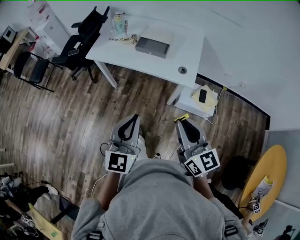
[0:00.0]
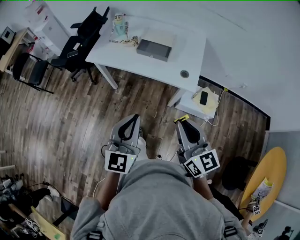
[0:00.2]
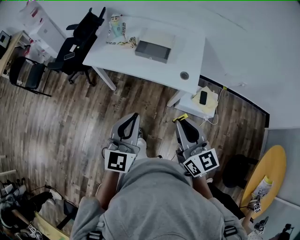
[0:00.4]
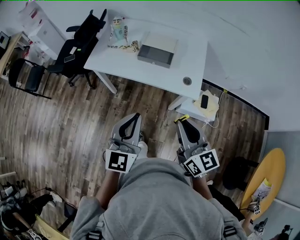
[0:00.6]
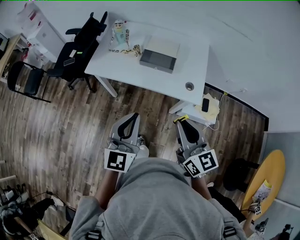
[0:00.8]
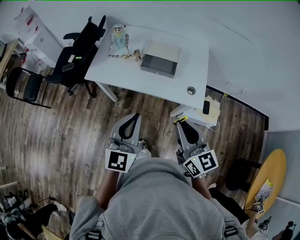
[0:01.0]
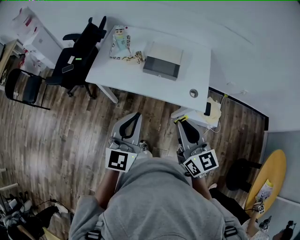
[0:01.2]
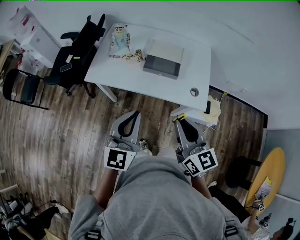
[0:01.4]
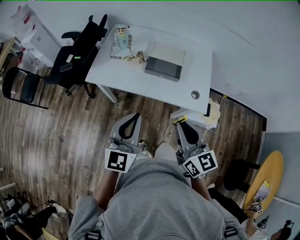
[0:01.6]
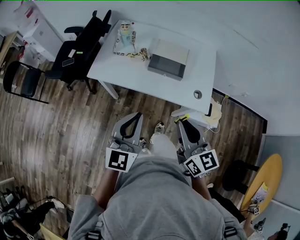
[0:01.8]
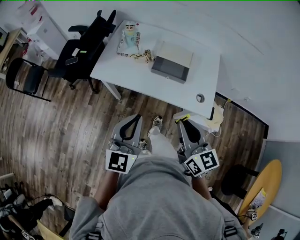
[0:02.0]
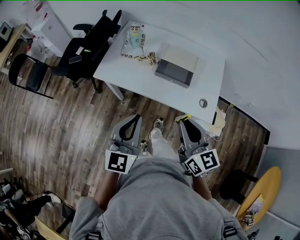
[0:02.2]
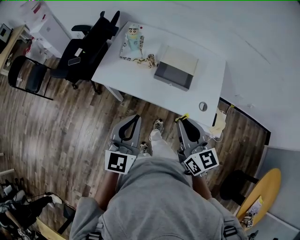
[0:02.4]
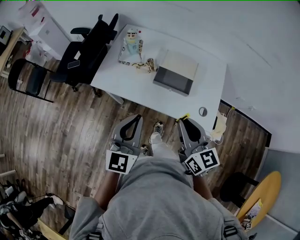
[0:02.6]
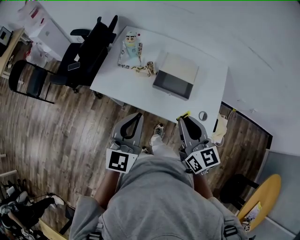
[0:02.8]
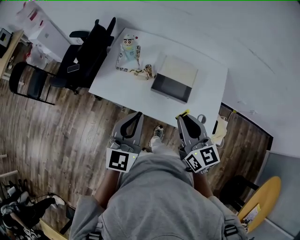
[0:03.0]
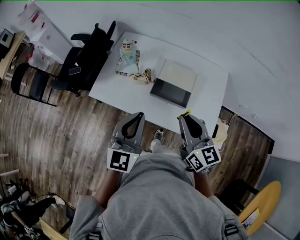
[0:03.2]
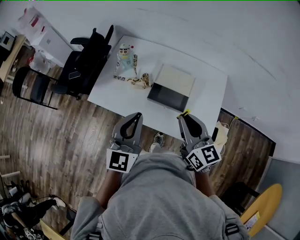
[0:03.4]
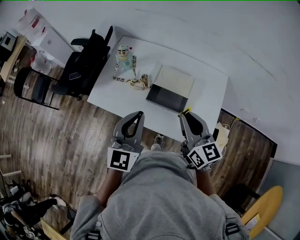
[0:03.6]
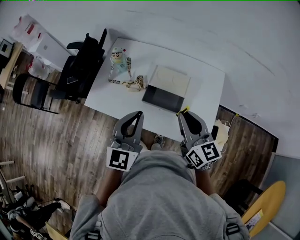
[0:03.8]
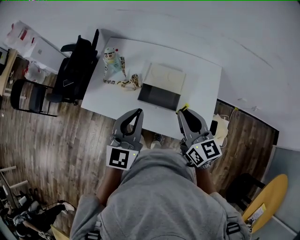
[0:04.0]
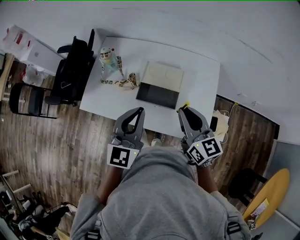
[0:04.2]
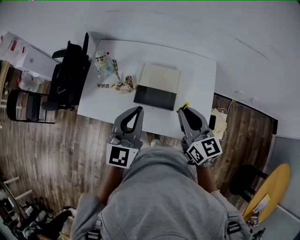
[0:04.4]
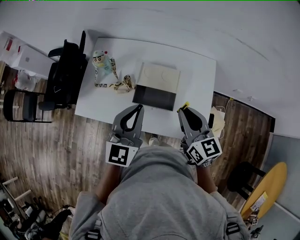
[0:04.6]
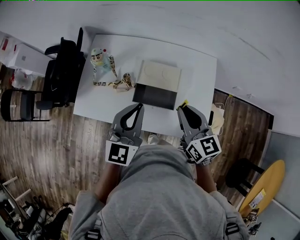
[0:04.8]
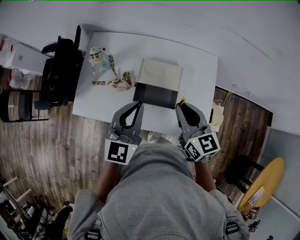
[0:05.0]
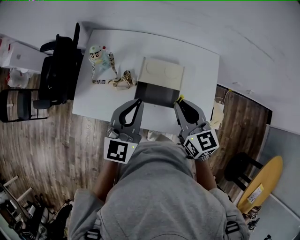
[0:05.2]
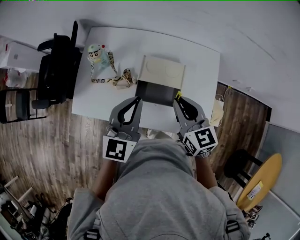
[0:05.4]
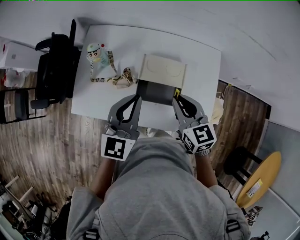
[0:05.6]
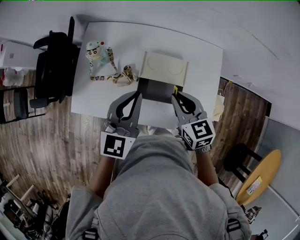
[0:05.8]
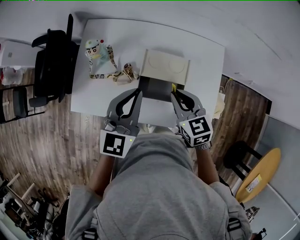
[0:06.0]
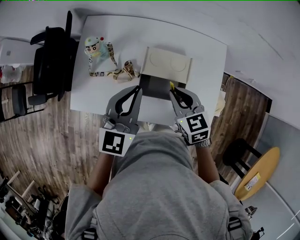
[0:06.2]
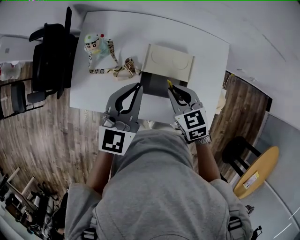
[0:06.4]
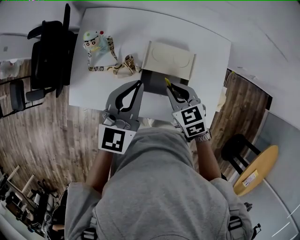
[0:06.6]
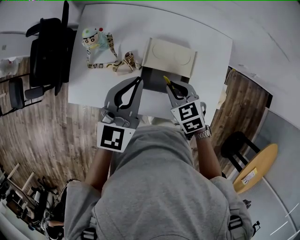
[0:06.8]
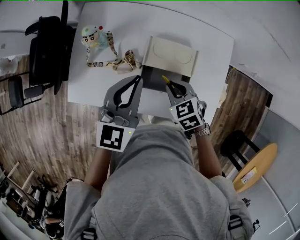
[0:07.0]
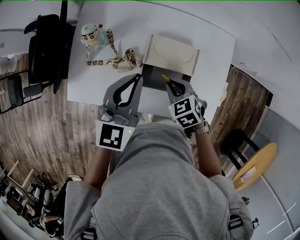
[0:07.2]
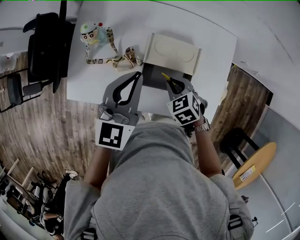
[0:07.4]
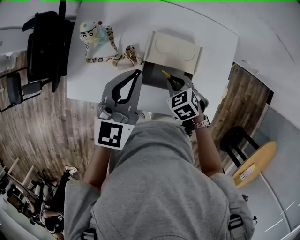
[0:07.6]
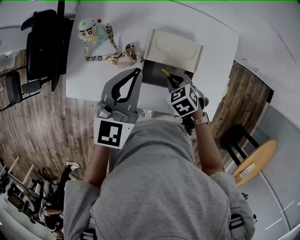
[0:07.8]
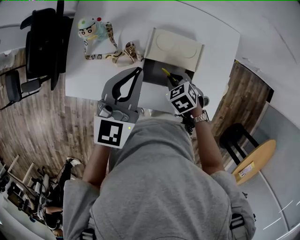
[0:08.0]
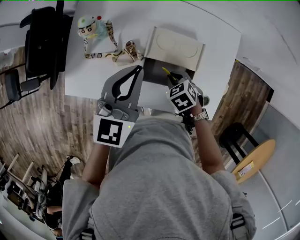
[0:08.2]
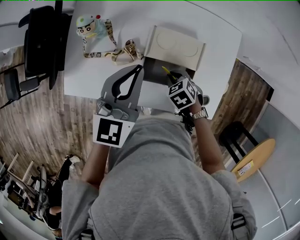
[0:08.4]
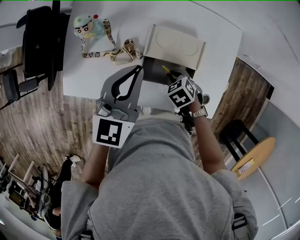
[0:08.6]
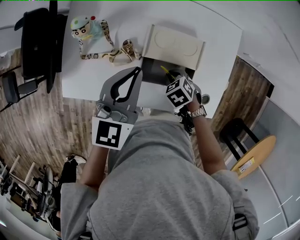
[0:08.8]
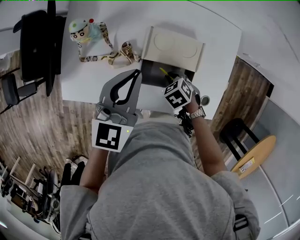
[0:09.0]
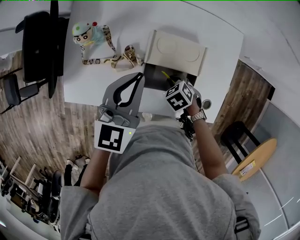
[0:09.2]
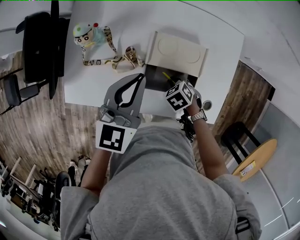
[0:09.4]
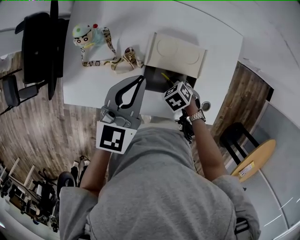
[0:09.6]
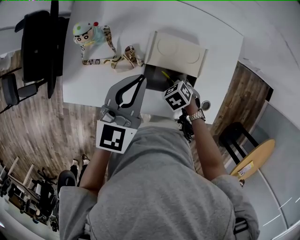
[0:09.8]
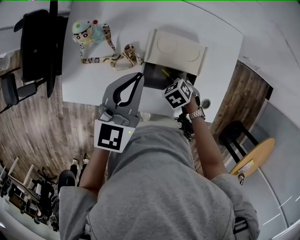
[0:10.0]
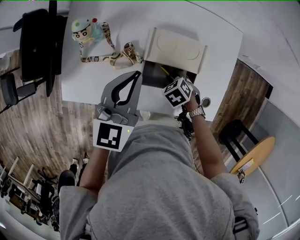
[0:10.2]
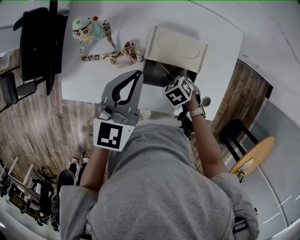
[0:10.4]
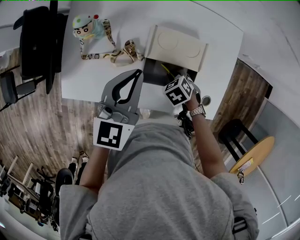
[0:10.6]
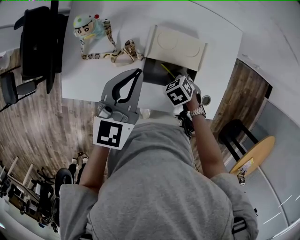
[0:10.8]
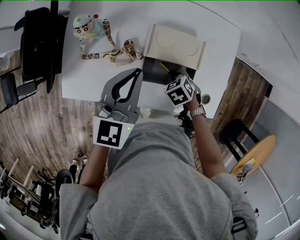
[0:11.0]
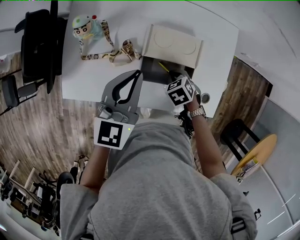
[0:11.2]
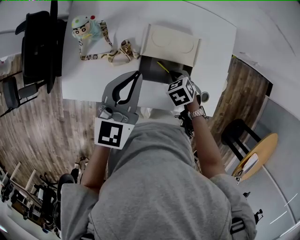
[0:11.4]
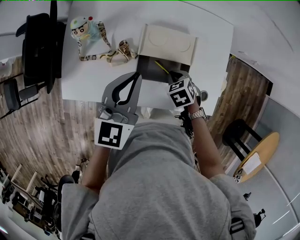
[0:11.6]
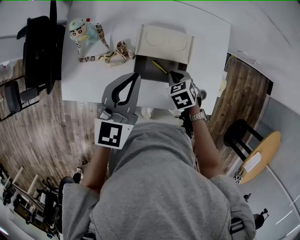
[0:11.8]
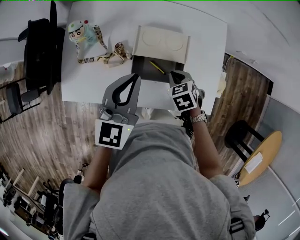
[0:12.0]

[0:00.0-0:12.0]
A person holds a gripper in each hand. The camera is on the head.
0:00.0 to 0:01.6: Both grippers move forward and to the left, approximately 25 cm.
0:01.6 to 0:03.0: The two grippers go some 15 cm forward.
0:03.0 to 0:04.4: The left gripper shifts approximately 15 cm forward and to the right, while the right gripper heads to the right and forward, covering some 15 cm.
0:04.4 to 0:06.0: The left gripper is displaced forward and to the left by approximately 10 cm. The right gripper heads downward, forward and to the left, covering some 15 cm, and swivels about 30 degrees.
0:06.0 to 0:07.6: The left gripper ends up roughly 5 cm from where it was, while the right gripper heads downward, covering some 15 cm, and rotates about 30 degrees.
0:07.6 to 0:09.0: The right gripper moves downward, roughly 10 cm.
0:09.0 to 0:10.4: There are only small adjustments of the grippers.
0:10.4 to 0:12.0: The left gripper ends up some 10 cm from where it was, while the right gripper heads upward, covering approximately 10 cm, and turns by some 20 degrees.

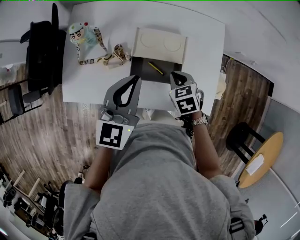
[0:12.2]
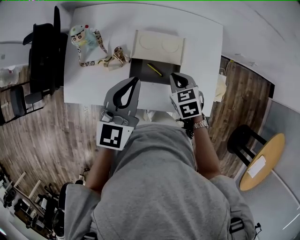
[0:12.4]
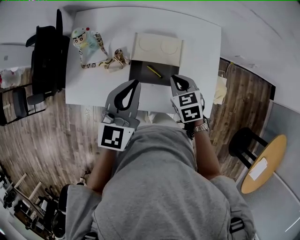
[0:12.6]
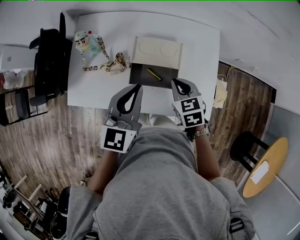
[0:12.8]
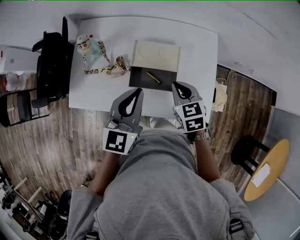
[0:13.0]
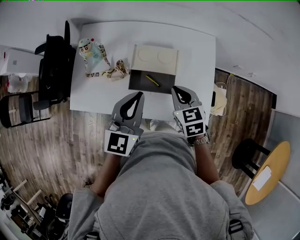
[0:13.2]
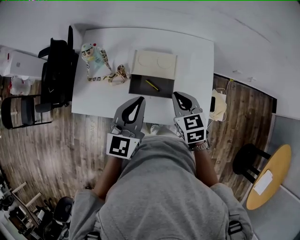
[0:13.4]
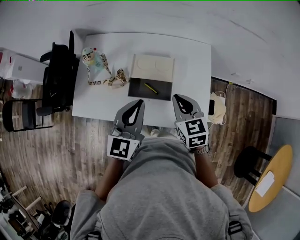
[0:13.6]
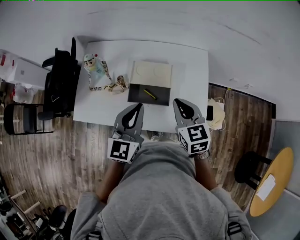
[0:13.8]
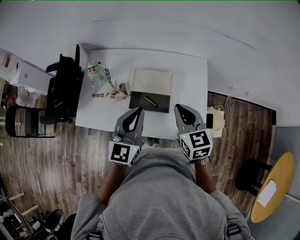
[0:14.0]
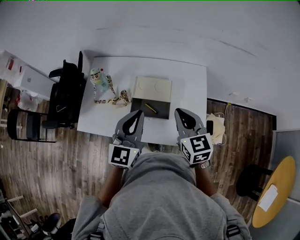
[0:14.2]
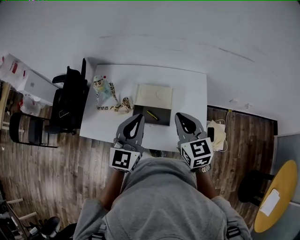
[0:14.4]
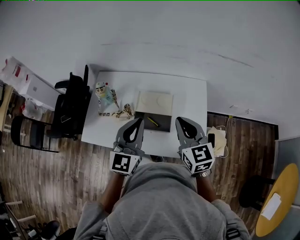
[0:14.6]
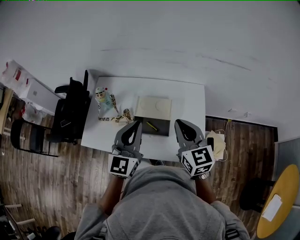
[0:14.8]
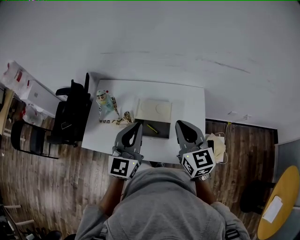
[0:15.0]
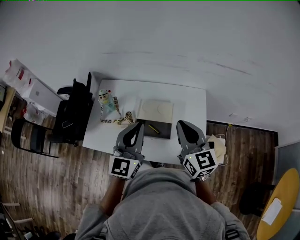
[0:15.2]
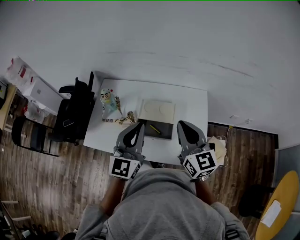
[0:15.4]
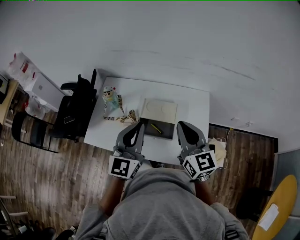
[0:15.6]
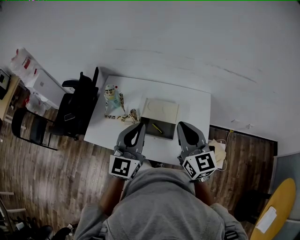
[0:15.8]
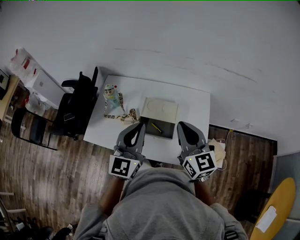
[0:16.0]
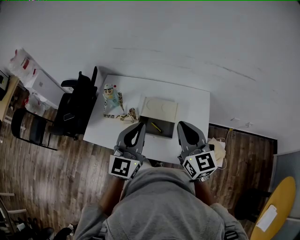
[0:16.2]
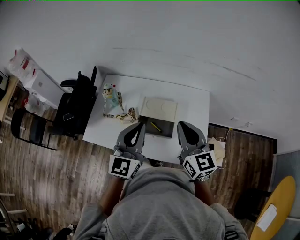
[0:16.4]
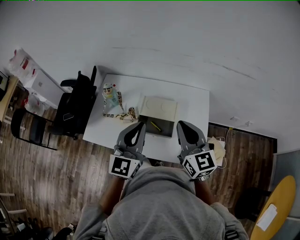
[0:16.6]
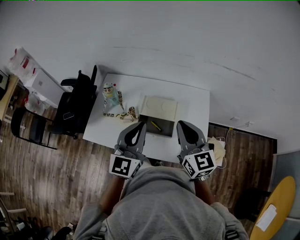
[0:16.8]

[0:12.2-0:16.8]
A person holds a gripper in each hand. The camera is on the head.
0:12.2 to 0:13.8: The left gripper moves backward and to the right, roughly 10 cm. The right gripper shifts roughly 15 cm upward, and angles its fingers upward, by roughly 30 degrees.
0:13.8 to 0:15.2: Both grippers move upward, approximately 10 cm. The right gripper changes its angle by some 20 degrees.
0:15.2 to 0:16.8: The grippers move only a little.

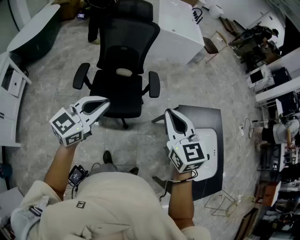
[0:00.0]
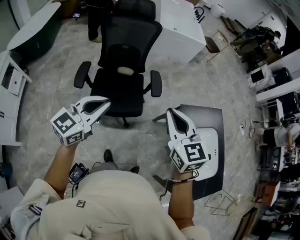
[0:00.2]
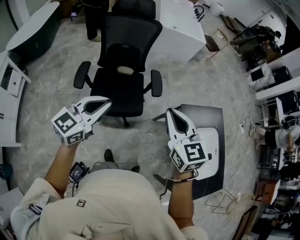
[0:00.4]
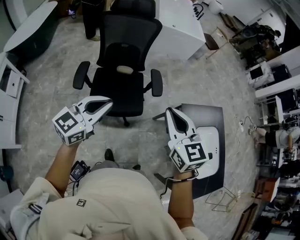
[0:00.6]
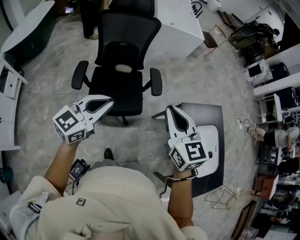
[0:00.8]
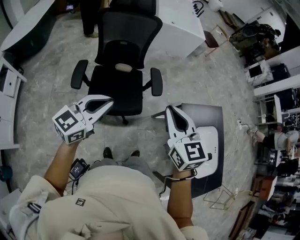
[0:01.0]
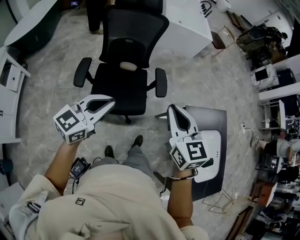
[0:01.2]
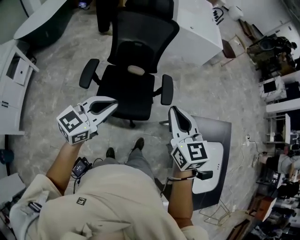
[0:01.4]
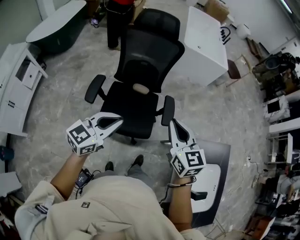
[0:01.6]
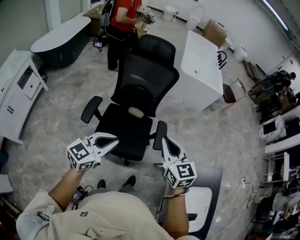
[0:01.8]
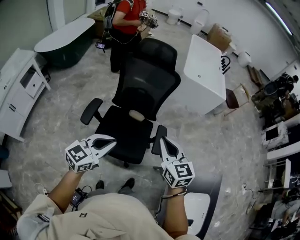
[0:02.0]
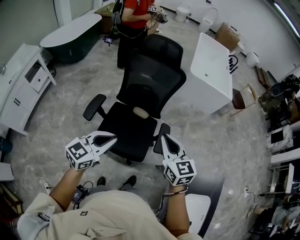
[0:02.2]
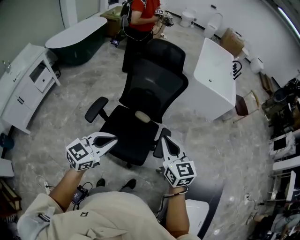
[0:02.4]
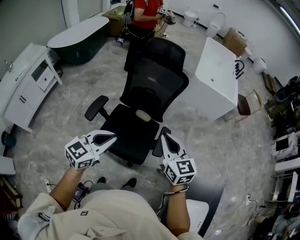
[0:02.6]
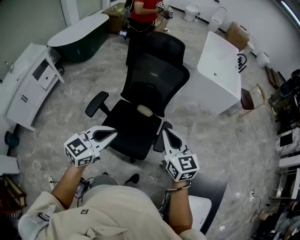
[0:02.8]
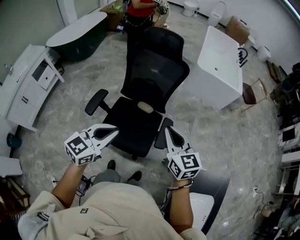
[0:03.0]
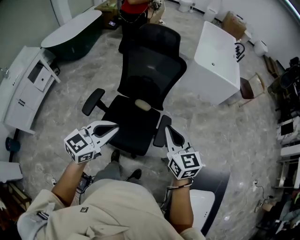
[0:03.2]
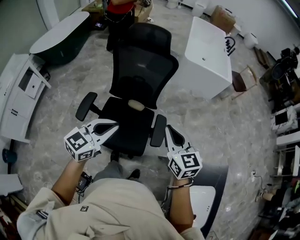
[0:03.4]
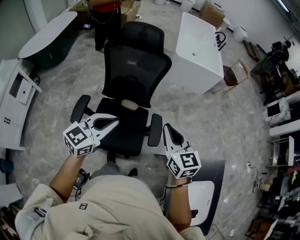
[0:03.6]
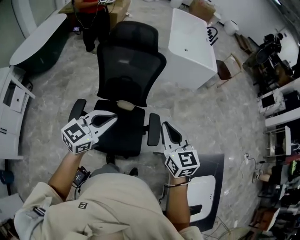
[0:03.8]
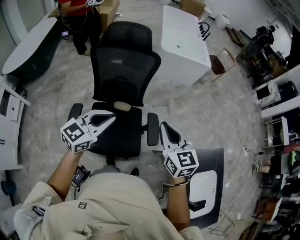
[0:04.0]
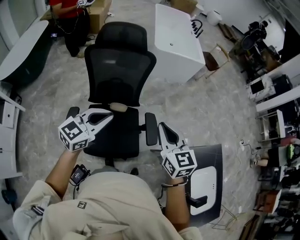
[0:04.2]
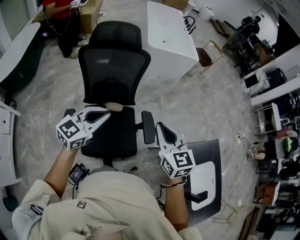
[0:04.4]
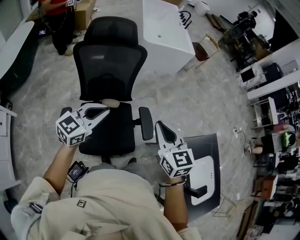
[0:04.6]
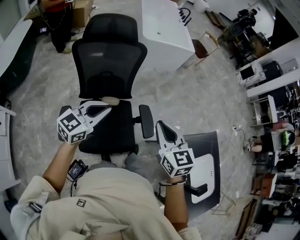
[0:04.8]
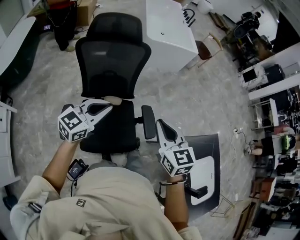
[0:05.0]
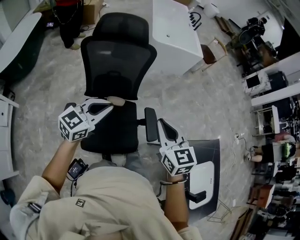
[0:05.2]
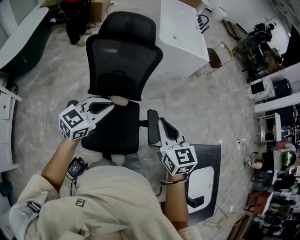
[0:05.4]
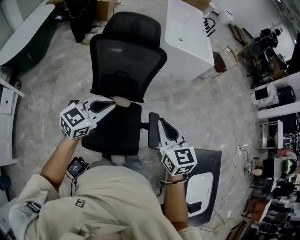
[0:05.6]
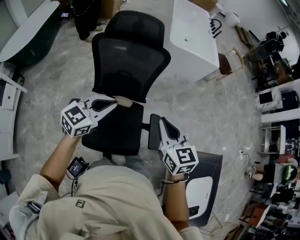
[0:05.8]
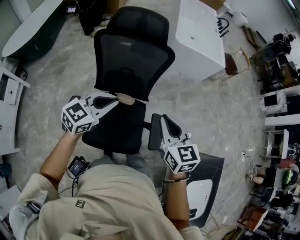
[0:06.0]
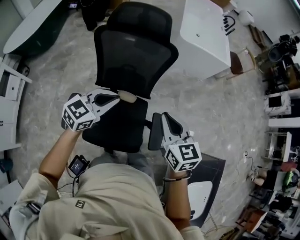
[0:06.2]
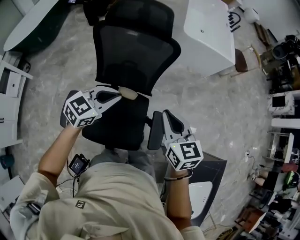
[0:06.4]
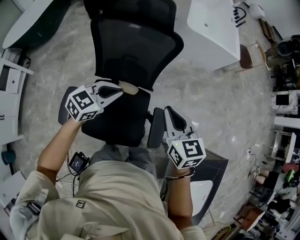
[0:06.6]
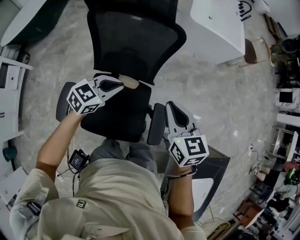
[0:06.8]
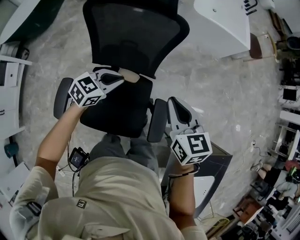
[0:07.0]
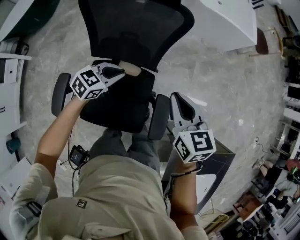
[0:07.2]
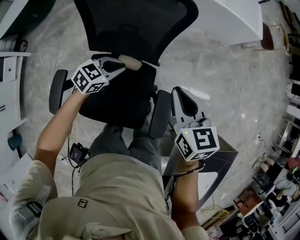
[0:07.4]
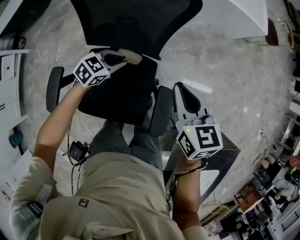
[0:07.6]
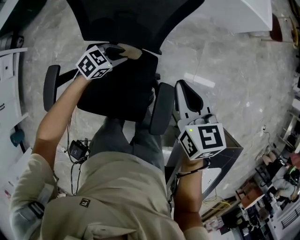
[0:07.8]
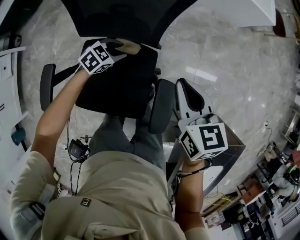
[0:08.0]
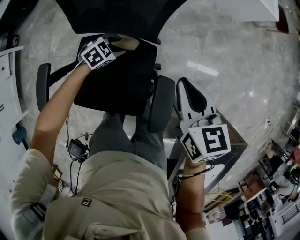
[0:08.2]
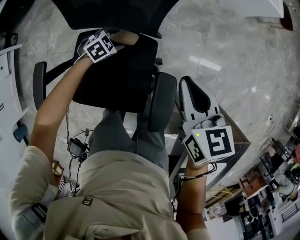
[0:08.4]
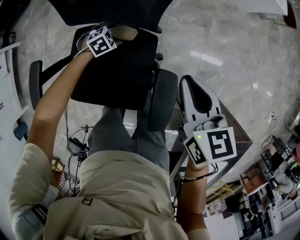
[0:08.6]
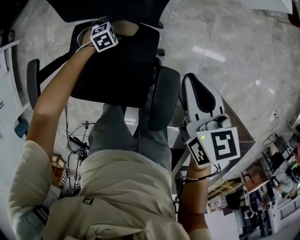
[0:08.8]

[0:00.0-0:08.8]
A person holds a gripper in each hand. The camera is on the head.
0:00.0 to 0:01.4: The left gripper is displaced forward and downward by approximately 10 cm, while the right gripper is displaced forward by approximately 10 cm.
0:01.4 to 0:03.0: The right gripper heads forward, covering some 15 cm. Meanwhile the left gripper goes some 10 cm forward and to the right.
0:03.0 to 0:04.4: The left gripper shifts by about 15 cm, and turns by some 30 degrees. Meanwhile the right gripper swivels some 30 degrees.
0:04.4 to 0:05.8: The two grippers go about 10 cm forward.
0:05.8 to 0:07.4: Both grippers move downward and forward, approximately 30 cm. The left gripper turns by about 30 degrees.
0:07.4 to 0:08.8: The left gripper travels downward by about 30 cm, points its fingers about 40 degrees further downward, and opens up, while the right gripper goes some 15 cm downward.
